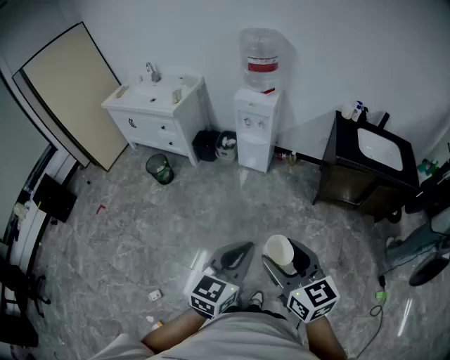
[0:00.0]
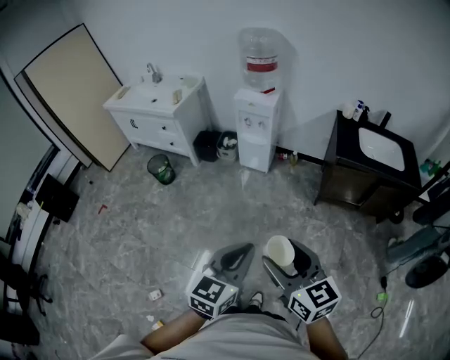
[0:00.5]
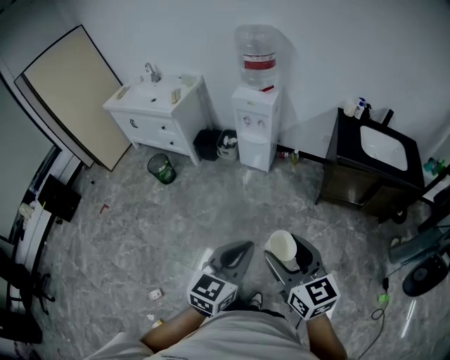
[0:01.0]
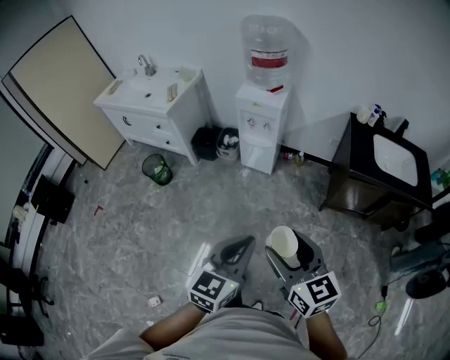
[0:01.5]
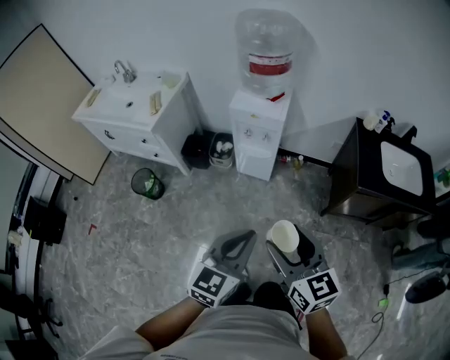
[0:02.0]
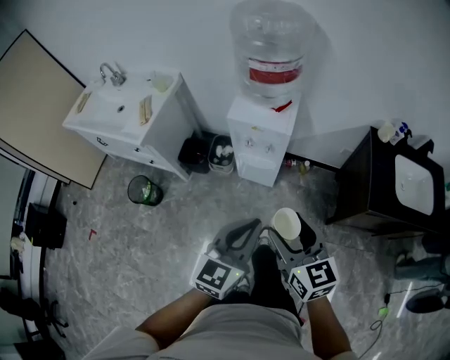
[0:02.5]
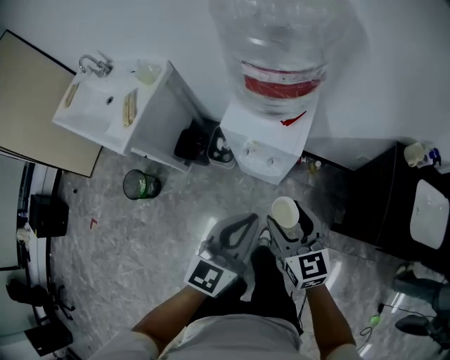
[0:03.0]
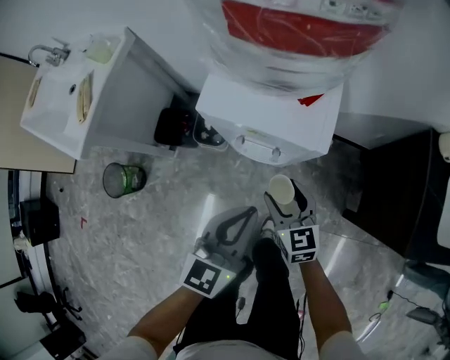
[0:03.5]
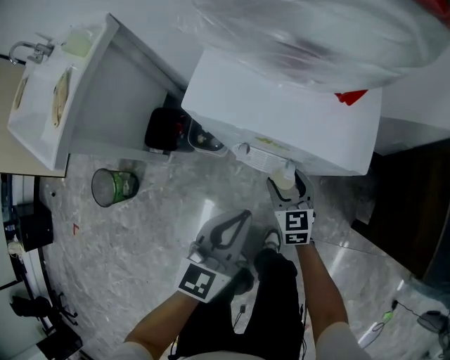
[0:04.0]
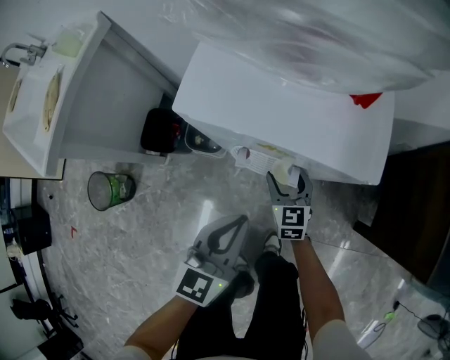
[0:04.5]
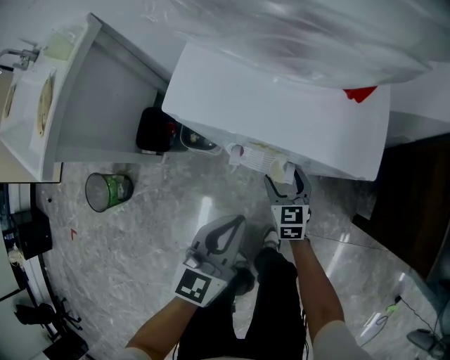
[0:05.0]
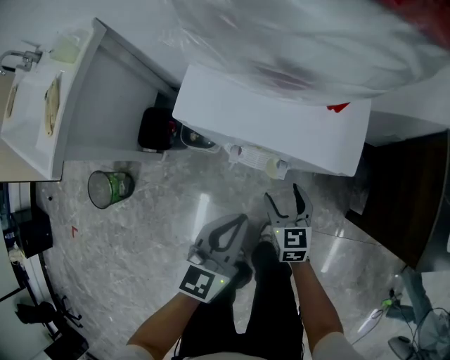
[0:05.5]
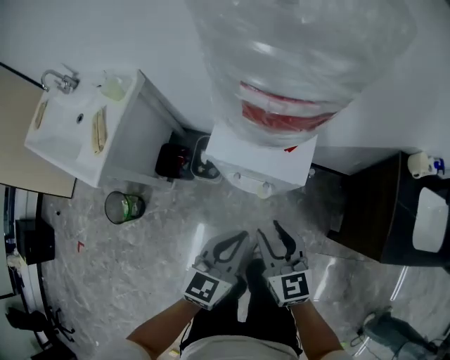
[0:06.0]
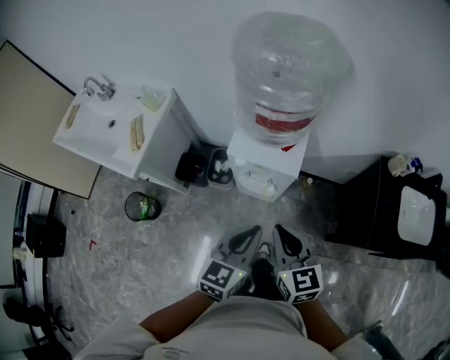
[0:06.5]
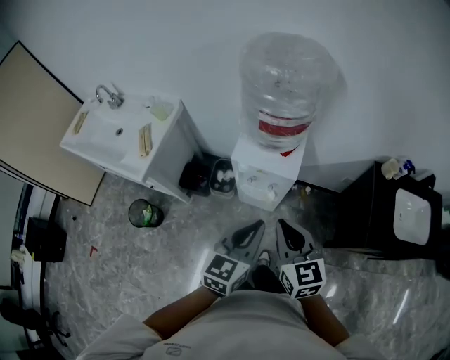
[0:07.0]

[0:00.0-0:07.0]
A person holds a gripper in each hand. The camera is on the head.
0:00.0 to 0:02.0: The grippers both shift forward by roughly 35 cm.
0:02.0 to 0:03.5: Both grippers are carried forward, some 50 cm. The right gripper moves downward, about 40 cm. The left gripper shifts some 25 cm downward.
0:03.5 to 0:05.0: Both grippers travel together downward, approximately 20 cm.
0:05.0 to 0:07.0: The grippers both shift upward by roughly 50 cm. The right gripper closes up.

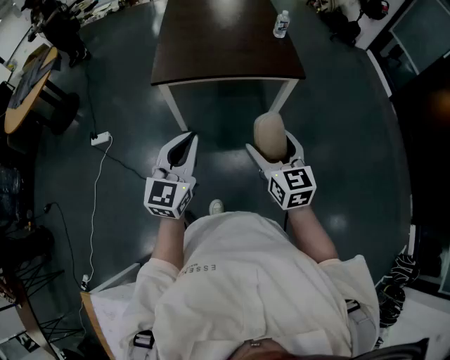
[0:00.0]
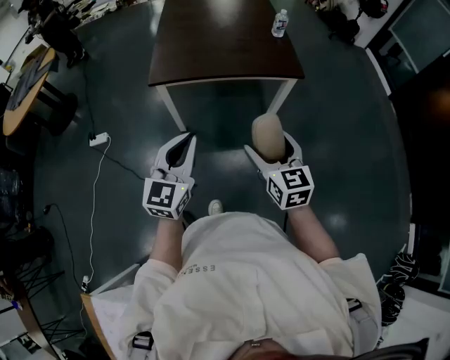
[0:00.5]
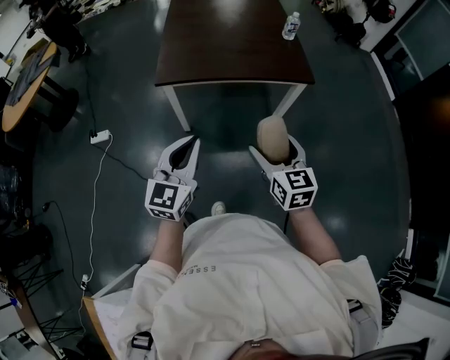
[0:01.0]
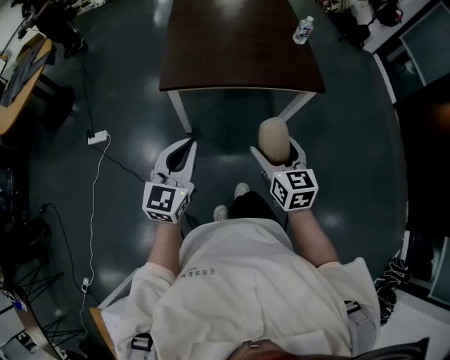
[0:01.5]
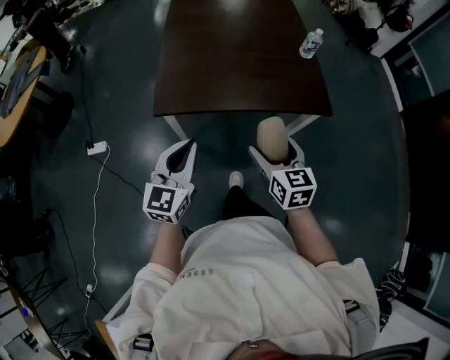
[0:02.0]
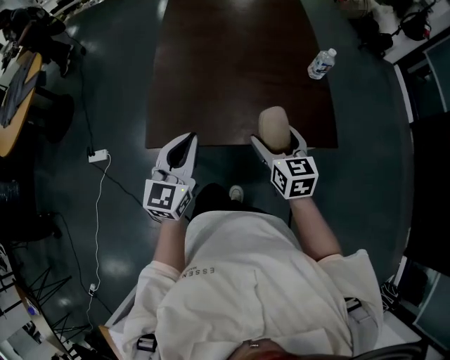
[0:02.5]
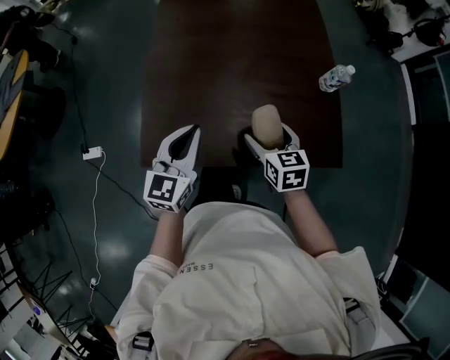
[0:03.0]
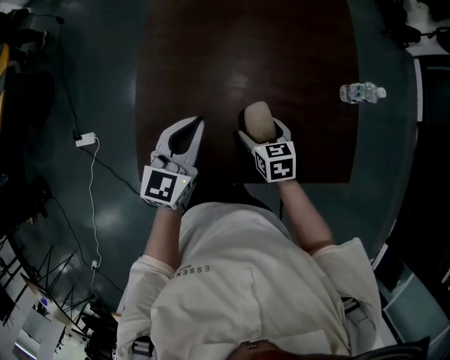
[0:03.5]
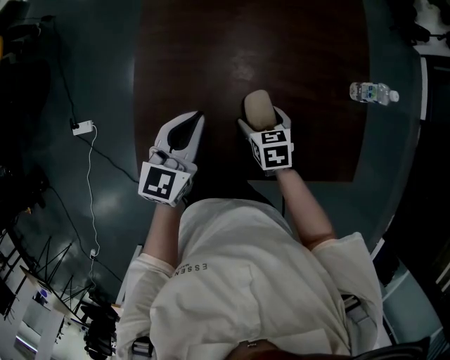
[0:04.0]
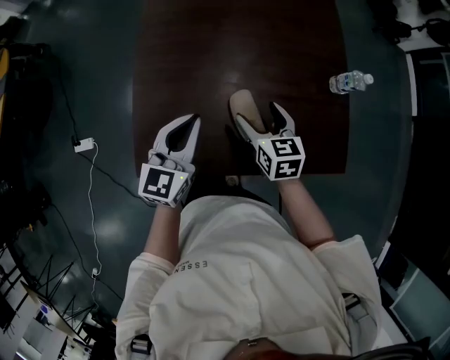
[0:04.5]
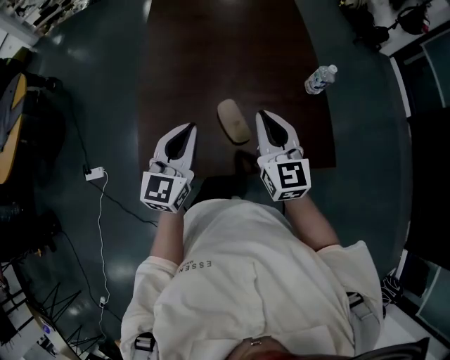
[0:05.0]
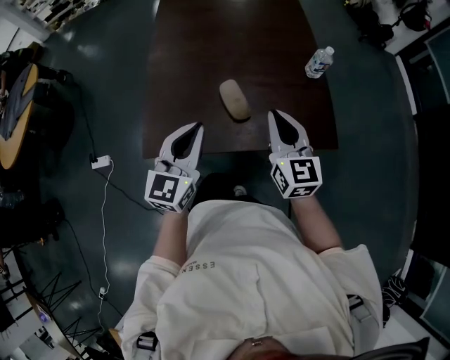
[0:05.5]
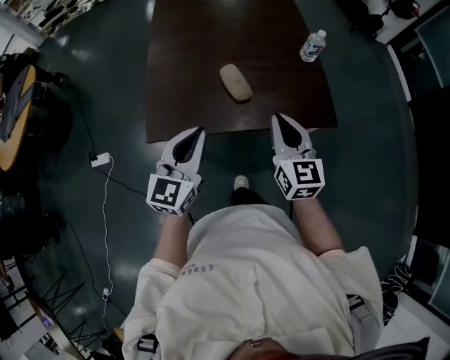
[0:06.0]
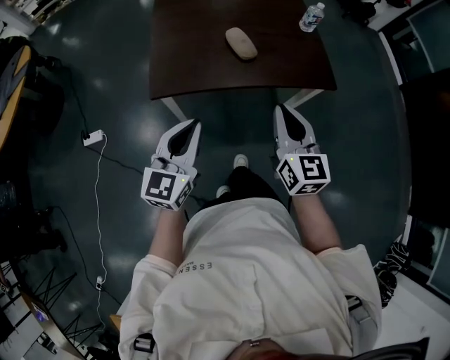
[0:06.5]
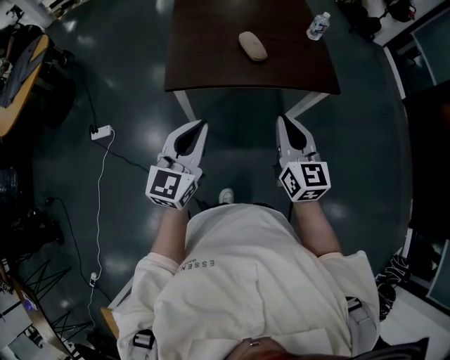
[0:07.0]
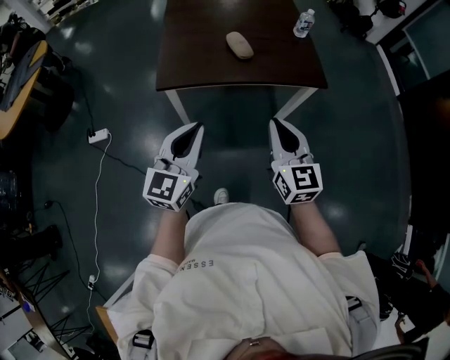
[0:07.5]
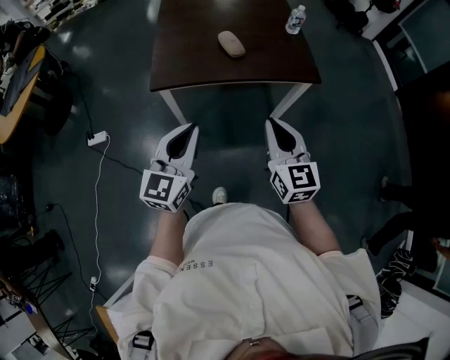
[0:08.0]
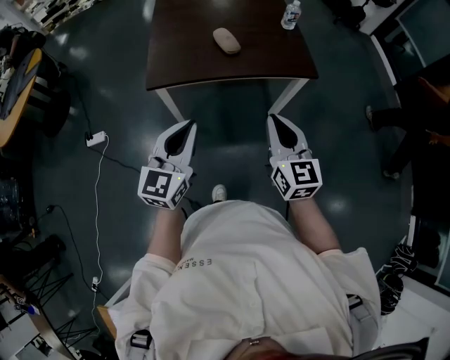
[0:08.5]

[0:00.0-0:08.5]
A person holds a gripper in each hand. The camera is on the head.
0:00.0 to 0:02.0: The two grippers go roughly 25 cm forward.
0:02.0 to 0:04.0: The right gripper is displaced forward and downward by about 40 cm, and angles its fingers downward, by some 30 degrees; the left gripper shifts approximately 35 cm forward.
0:04.0 to 0:06.5: The left gripper goes approximately 35 cm backward; the right gripper is displaced backward and upward by some 40 cm, points its fingers about 50 degrees further upward, and closes its fingers.
0:06.5 to 0:08.5: The two grippers go roughly 10 cm backward and to the right.

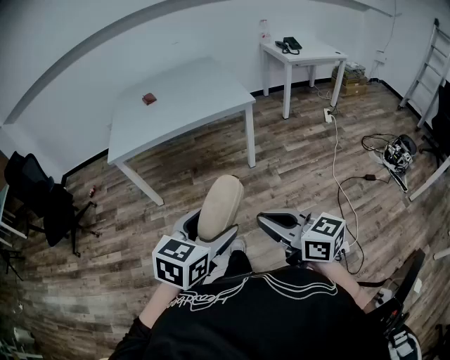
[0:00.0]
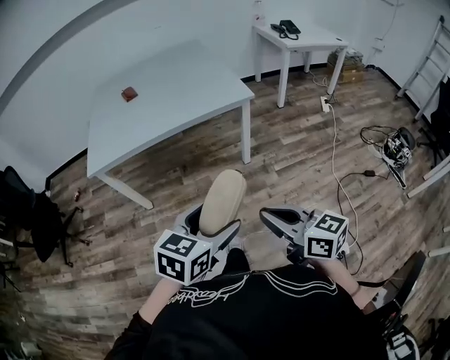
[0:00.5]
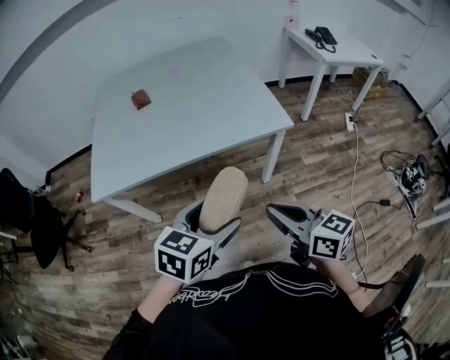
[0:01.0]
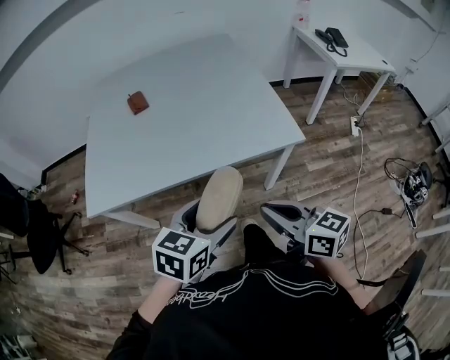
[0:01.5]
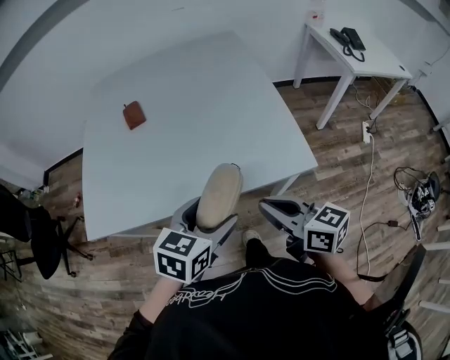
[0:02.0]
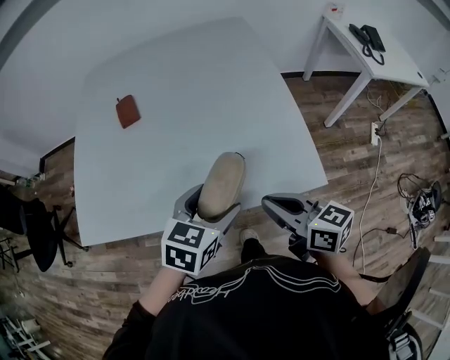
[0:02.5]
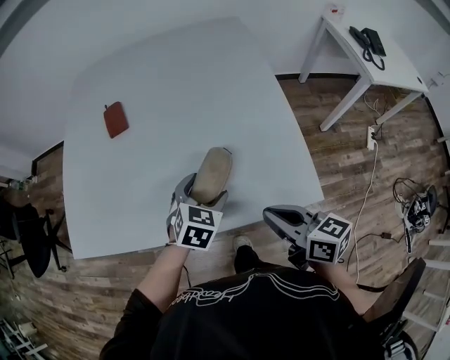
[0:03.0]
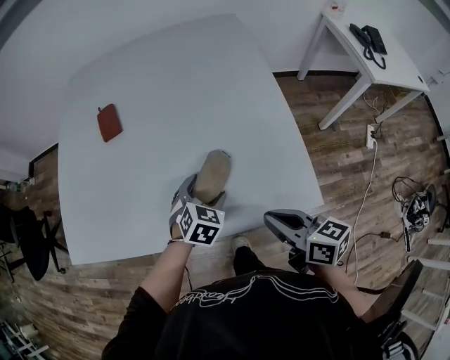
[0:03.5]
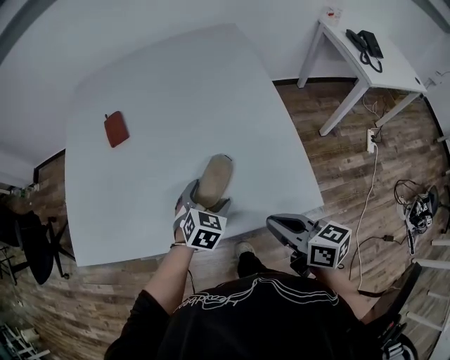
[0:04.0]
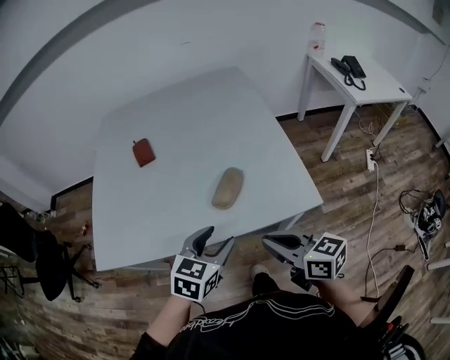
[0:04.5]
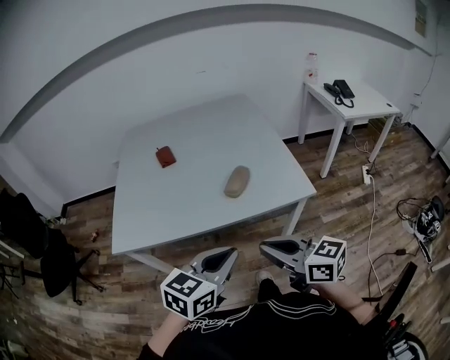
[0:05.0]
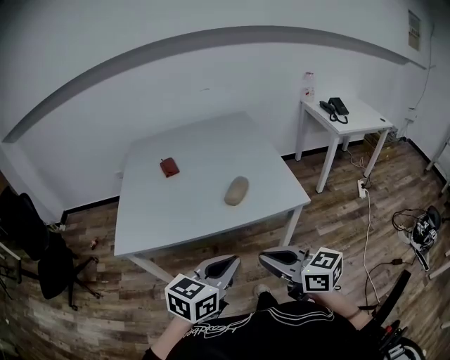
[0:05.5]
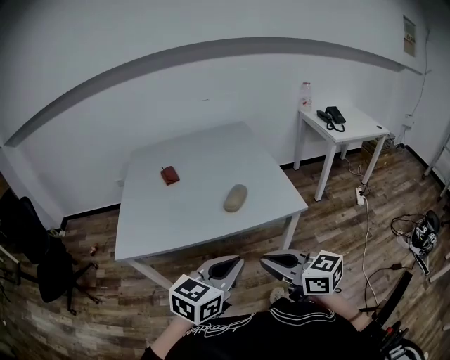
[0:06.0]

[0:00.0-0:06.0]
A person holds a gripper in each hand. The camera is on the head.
0:00.0 to 0:02.0: Both grippers are carried forward, some 70 cm.
0:02.0 to 0:04.0: The right gripper is displaced forward, downward and to the right by about 15 cm. Meanwhile the left gripper moves forward and downward, about 25 cm, and changes its angle by some 30 degrees.
0:04.0 to 0:06.0: The right gripper goes about 35 cm backward, upward and to the left, and turns by roughly 30 degrees, while the left gripper is displaced backward and upward by about 50 cm, points its fingers roughly 30 degrees further upward, and closes its fingers.

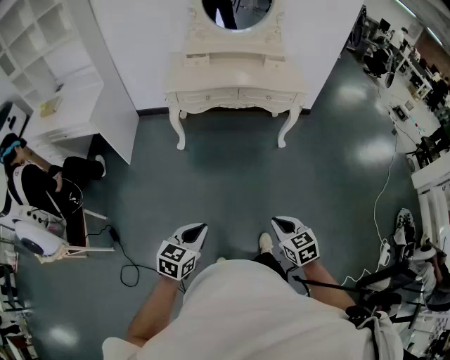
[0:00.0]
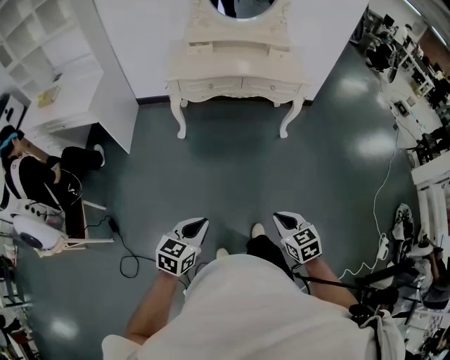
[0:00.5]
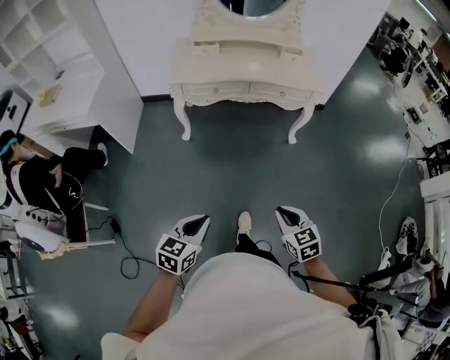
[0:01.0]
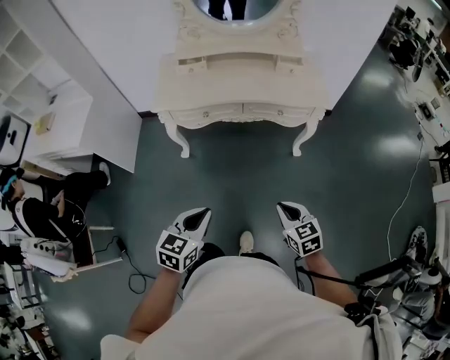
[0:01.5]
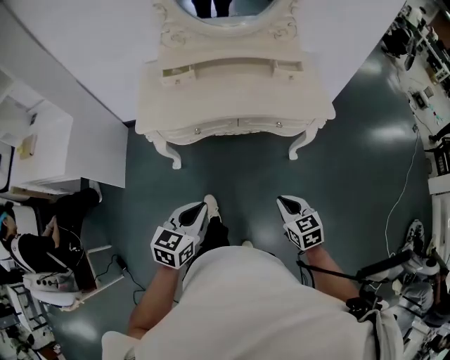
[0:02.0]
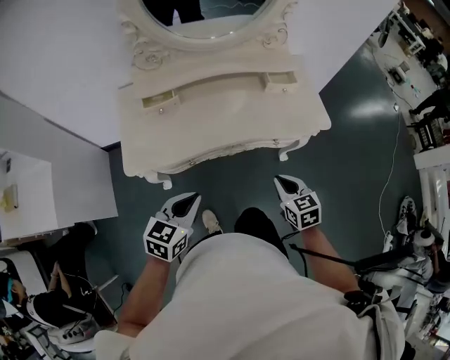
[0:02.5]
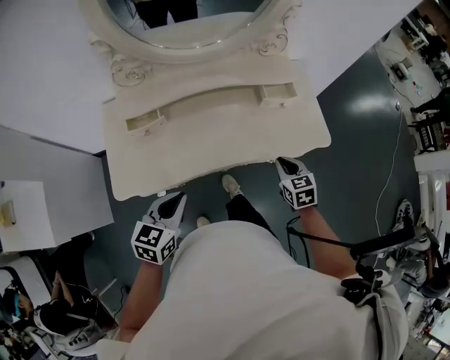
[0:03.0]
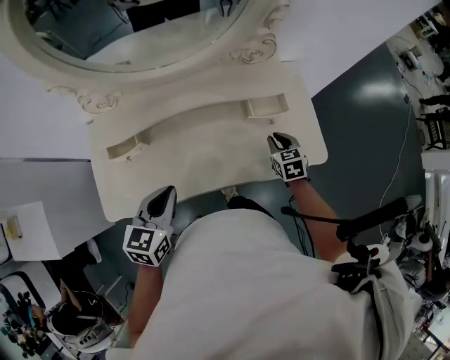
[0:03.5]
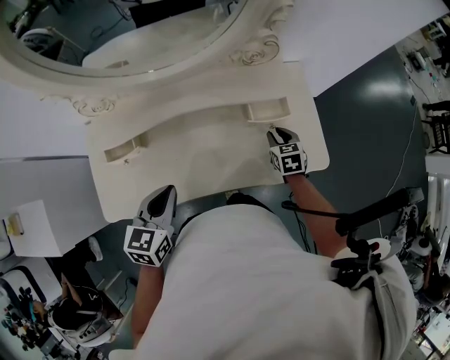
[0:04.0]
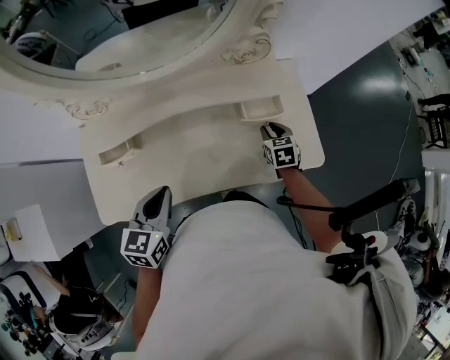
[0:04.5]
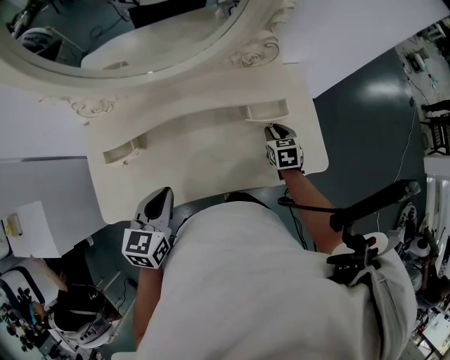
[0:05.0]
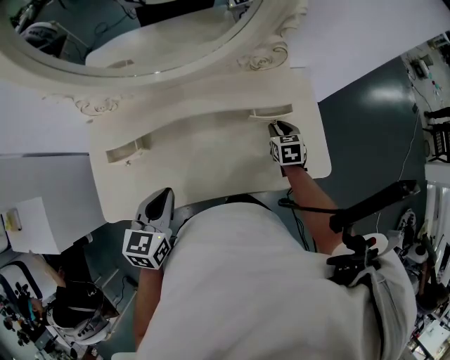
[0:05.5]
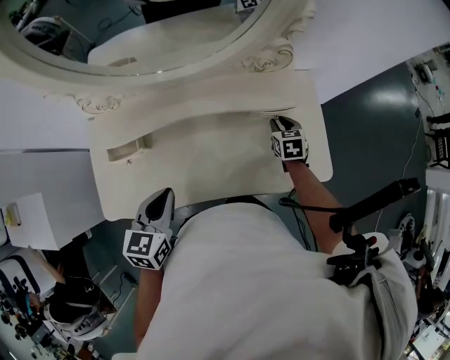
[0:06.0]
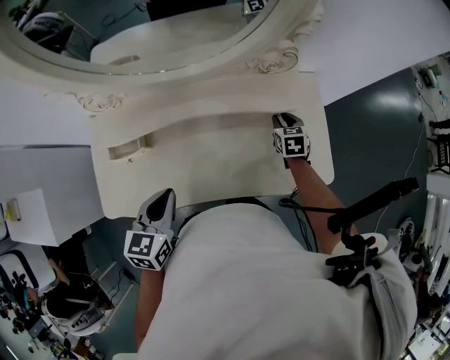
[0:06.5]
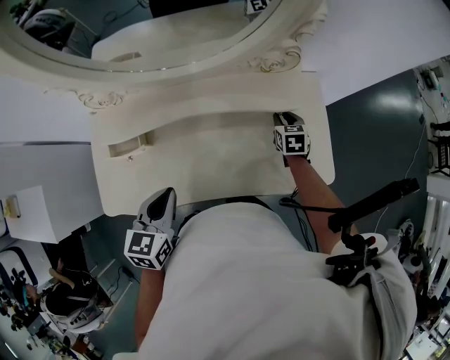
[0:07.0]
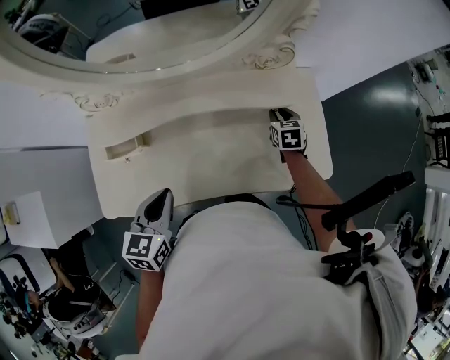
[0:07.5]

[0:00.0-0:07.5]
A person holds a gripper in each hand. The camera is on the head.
0:00.0 to 0:02.0: The two grippers travel together, forward, about 50 cm.
0:02.0 to 0:04.0: The pair of grippers is taken forward, some 60 cm. The right gripper changes its angle by approximately 20 degrees, and opens its fingers.
0:04.0 to 0:05.5: The grippers stay close to where they were, moving slightly.
0:05.5 to 0:07.5: The right gripper travels forward by roughly 5 cm.
